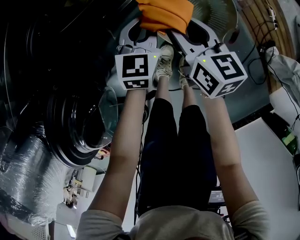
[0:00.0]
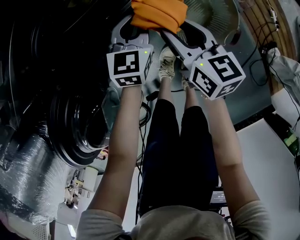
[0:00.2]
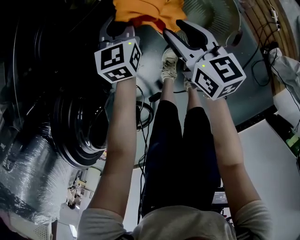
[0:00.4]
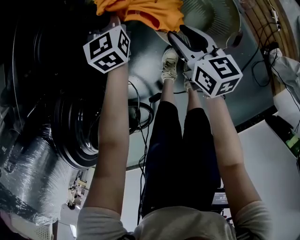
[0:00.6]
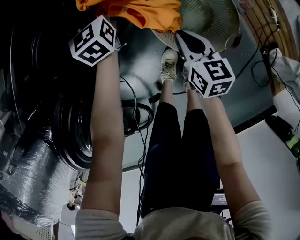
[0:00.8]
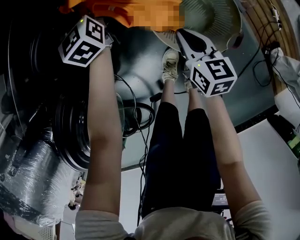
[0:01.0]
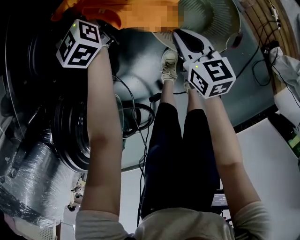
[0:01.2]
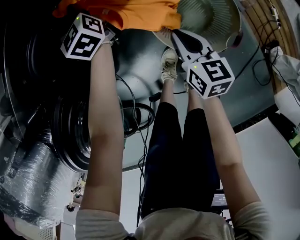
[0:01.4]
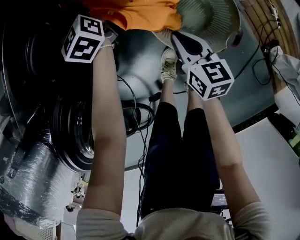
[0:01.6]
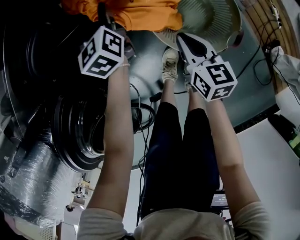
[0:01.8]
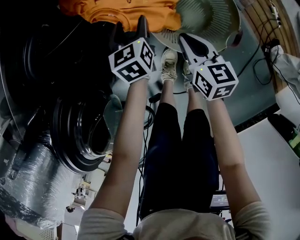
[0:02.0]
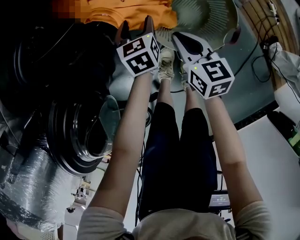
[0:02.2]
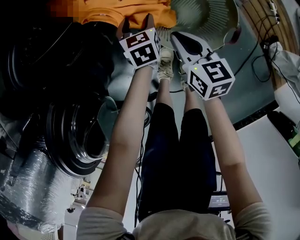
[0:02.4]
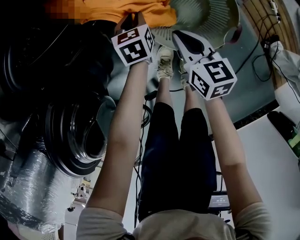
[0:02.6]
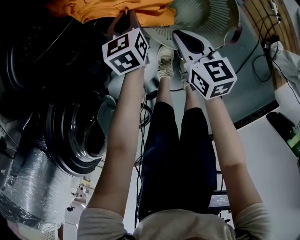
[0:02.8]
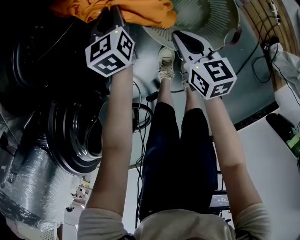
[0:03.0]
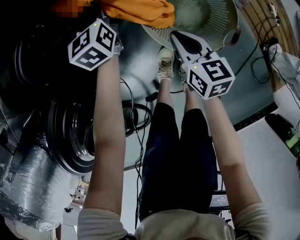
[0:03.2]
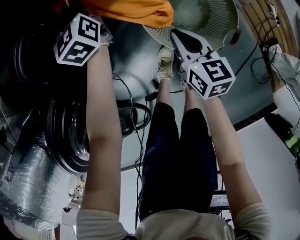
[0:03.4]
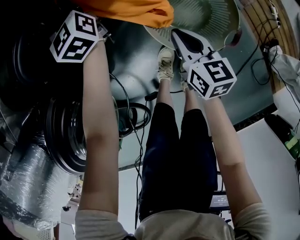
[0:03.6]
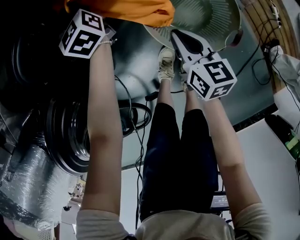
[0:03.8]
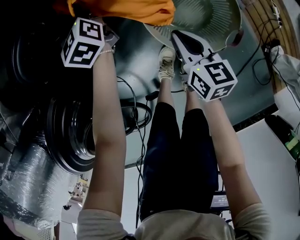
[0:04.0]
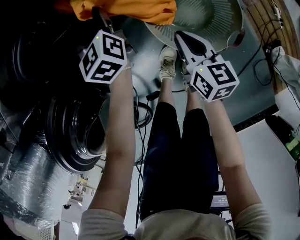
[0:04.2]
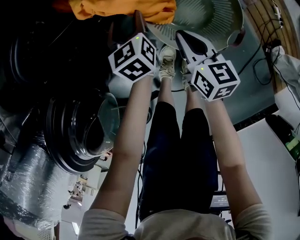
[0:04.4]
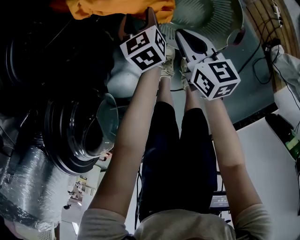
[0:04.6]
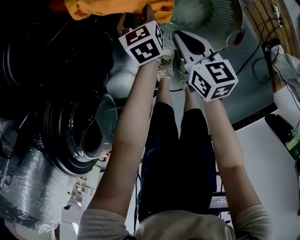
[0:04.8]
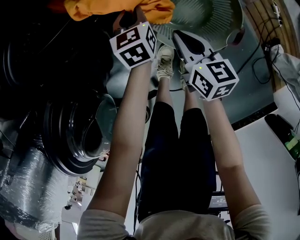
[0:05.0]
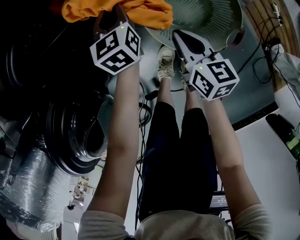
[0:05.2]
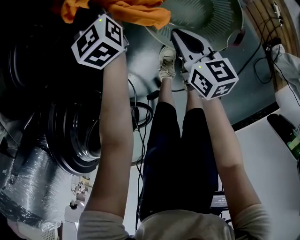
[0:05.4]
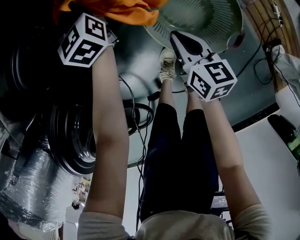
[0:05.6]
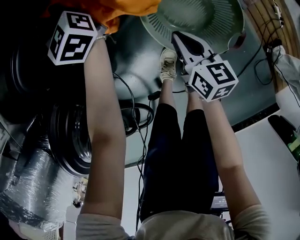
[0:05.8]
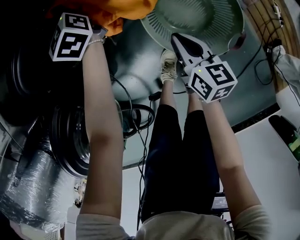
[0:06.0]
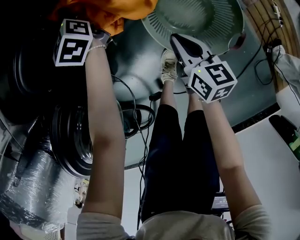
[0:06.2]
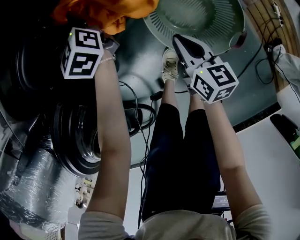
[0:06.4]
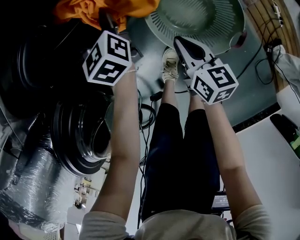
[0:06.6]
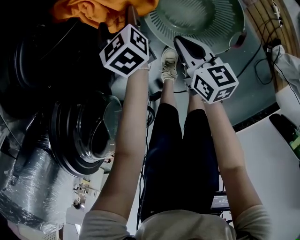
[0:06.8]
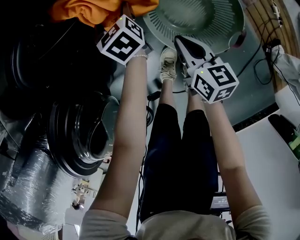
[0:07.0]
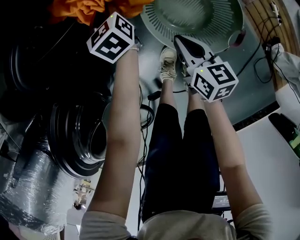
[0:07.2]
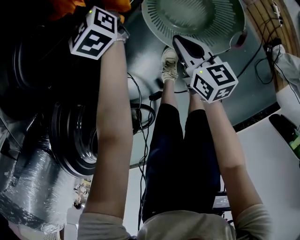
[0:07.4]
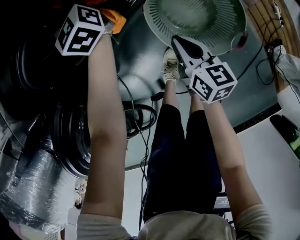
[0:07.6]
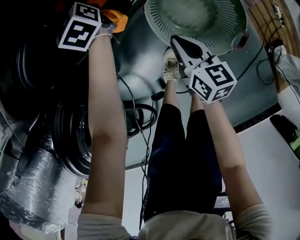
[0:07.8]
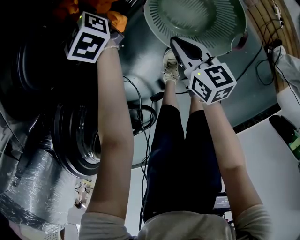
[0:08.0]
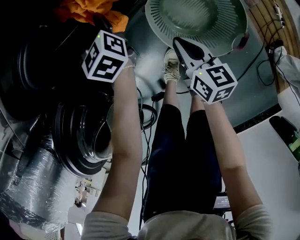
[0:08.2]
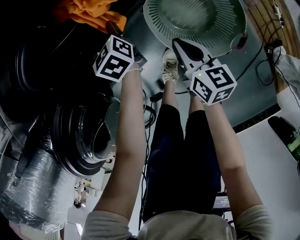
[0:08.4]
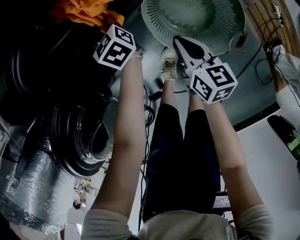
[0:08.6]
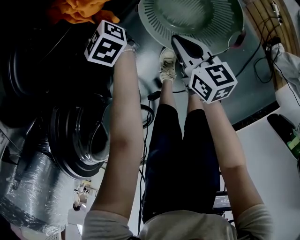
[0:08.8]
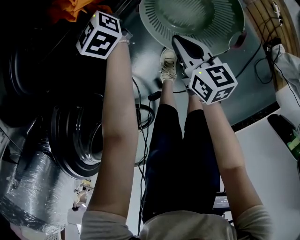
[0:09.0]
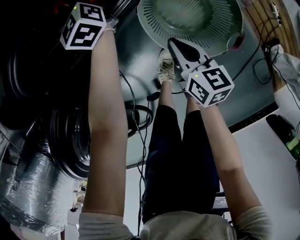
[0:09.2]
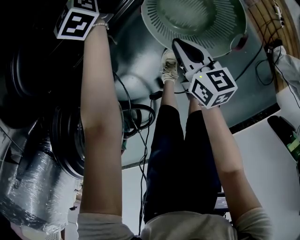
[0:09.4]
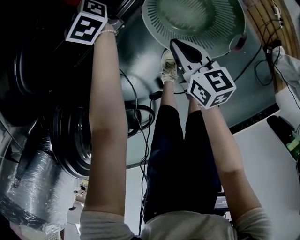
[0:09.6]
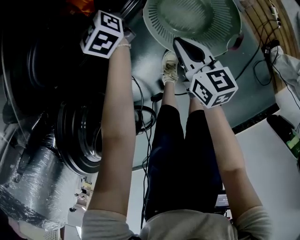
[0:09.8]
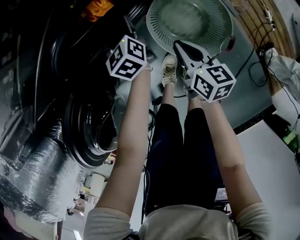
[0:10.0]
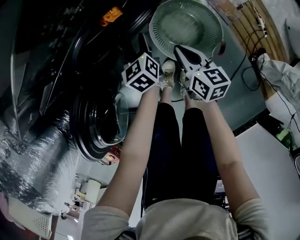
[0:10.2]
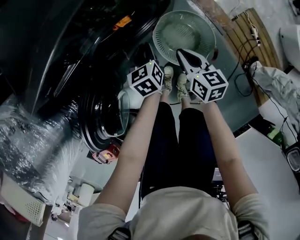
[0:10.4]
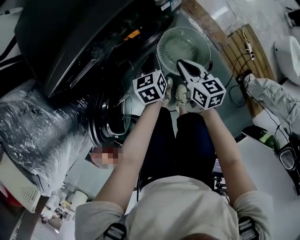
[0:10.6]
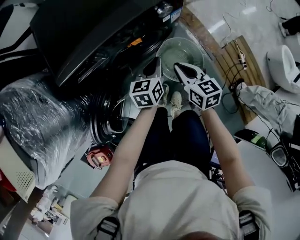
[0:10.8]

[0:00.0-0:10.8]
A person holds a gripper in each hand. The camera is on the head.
0:00.0 to 0:01.6: The left gripper shifts roughly 25 cm forward and to the left, swivels roughly 50 degrees, and opens up. The right gripper is displaced downward by about 5 cm, and closes up.
0:01.6 to 0:03.0: The left gripper is displaced backward, to the right and downward by roughly 15 cm, rotates some 30 degrees, and closes.
0:03.0 to 0:04.6: The left gripper moves backward and downward, about 10 cm, and opens its fingers.
0:04.6 to 0:06.2: The left gripper travels forward, to the left and upward by about 25 cm, changes its angle by approximately 30 degrees, and closes and opens again.
0:06.2 to 0:07.8: The left gripper goes backward and returns, approximately 15 cm each way, and opens, then closes once more.
0:07.8 to 0:09.2: The left gripper moves roughly 15 cm backward and comes back, and closes.
0:09.2 to 0:10.8: The right gripper goes about 35 cm upward, and turns by about 20 degrees. Meanwhile the left gripper heads upward and backward, covering roughly 40 cm, rotates some 40 degrees, and opens, then closes again.

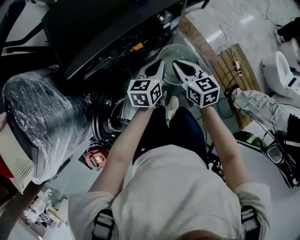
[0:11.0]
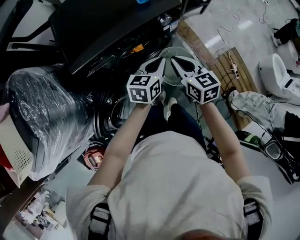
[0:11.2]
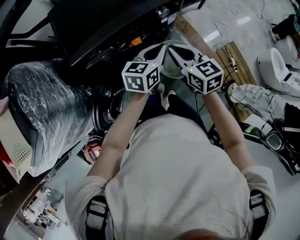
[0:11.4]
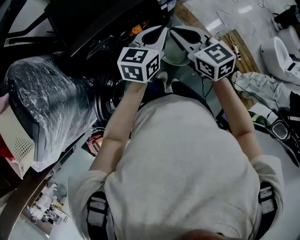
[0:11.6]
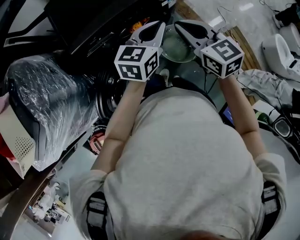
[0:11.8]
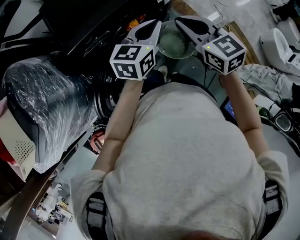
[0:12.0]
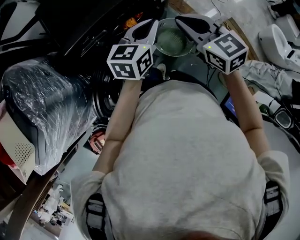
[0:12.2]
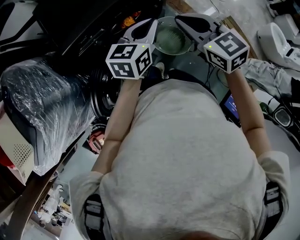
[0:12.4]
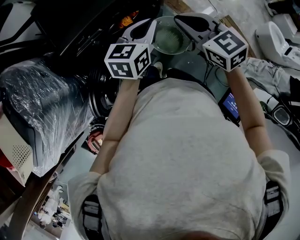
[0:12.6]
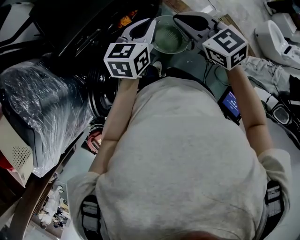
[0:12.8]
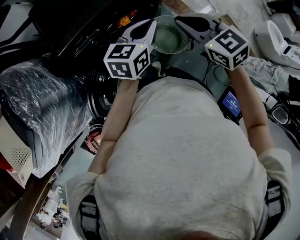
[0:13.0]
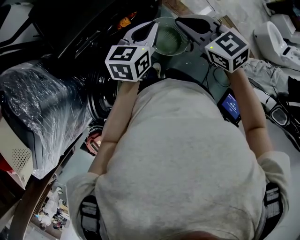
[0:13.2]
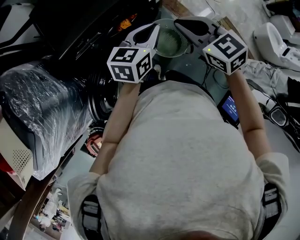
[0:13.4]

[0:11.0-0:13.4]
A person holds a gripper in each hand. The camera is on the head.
0:11.0 to 0:12.2: The two grippers go about 15 cm upward.
0:12.2 to 0:13.4: The grippers stay close to where they were, moving slightly.

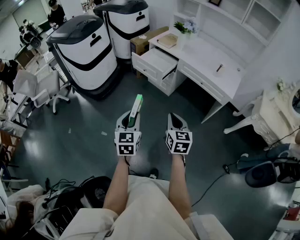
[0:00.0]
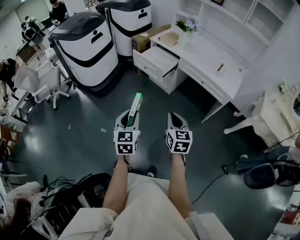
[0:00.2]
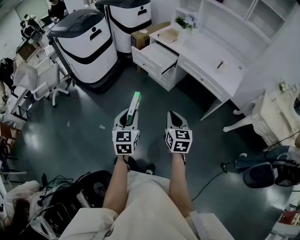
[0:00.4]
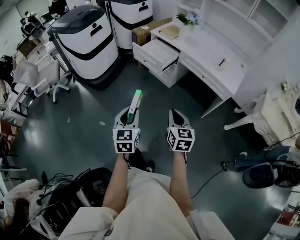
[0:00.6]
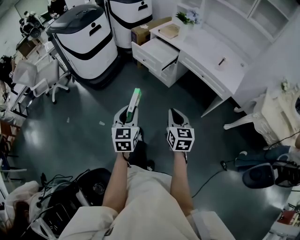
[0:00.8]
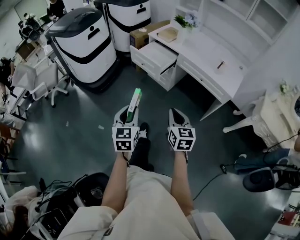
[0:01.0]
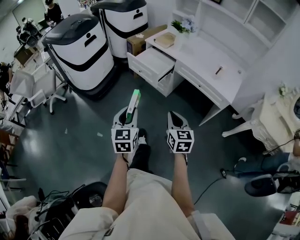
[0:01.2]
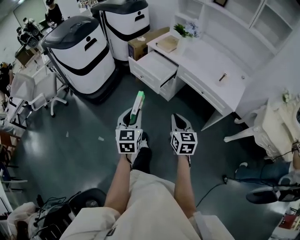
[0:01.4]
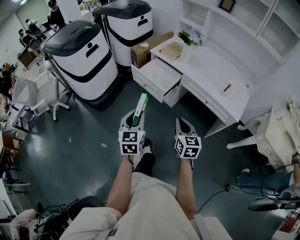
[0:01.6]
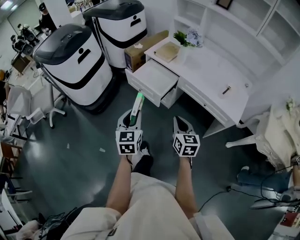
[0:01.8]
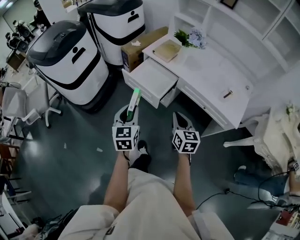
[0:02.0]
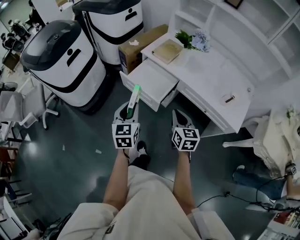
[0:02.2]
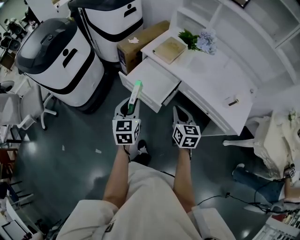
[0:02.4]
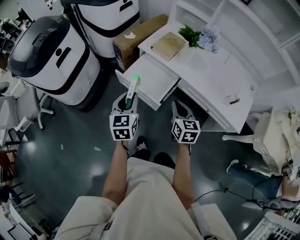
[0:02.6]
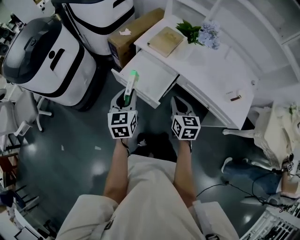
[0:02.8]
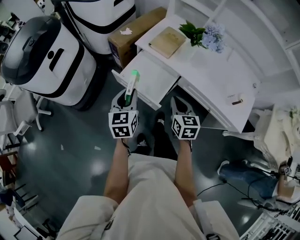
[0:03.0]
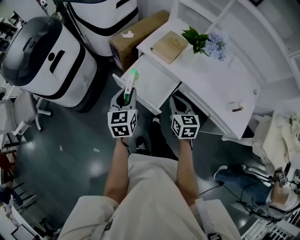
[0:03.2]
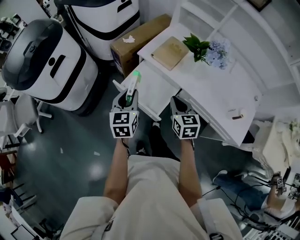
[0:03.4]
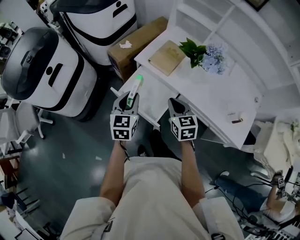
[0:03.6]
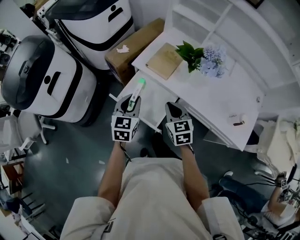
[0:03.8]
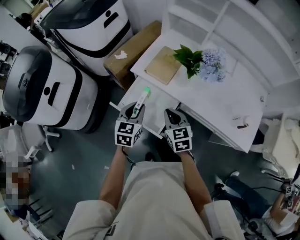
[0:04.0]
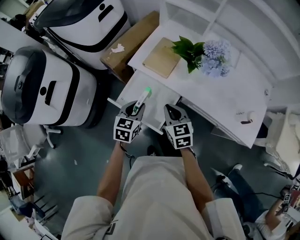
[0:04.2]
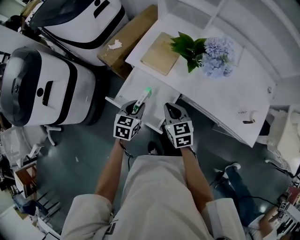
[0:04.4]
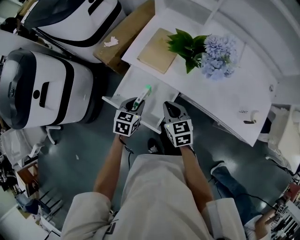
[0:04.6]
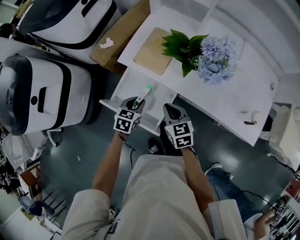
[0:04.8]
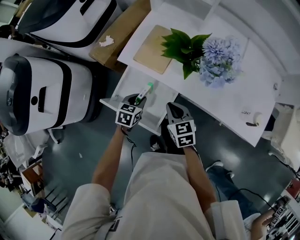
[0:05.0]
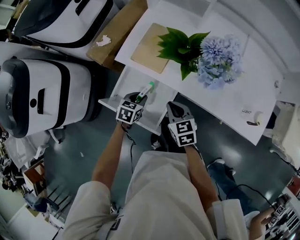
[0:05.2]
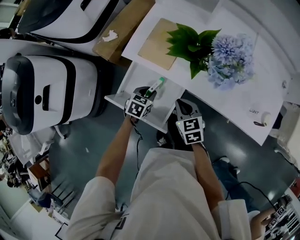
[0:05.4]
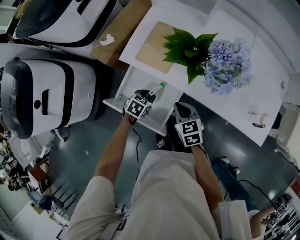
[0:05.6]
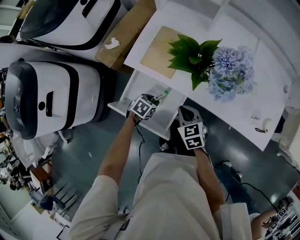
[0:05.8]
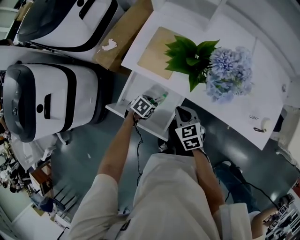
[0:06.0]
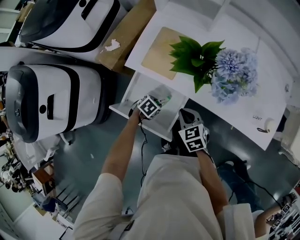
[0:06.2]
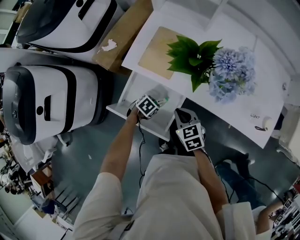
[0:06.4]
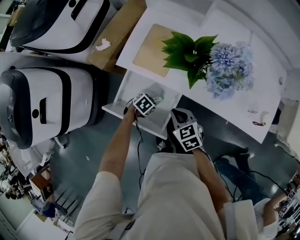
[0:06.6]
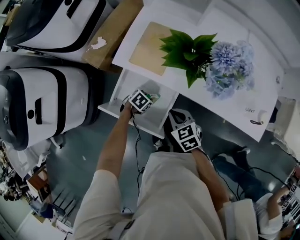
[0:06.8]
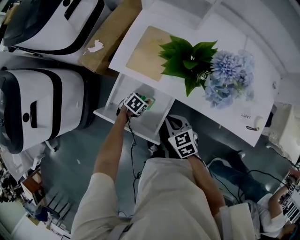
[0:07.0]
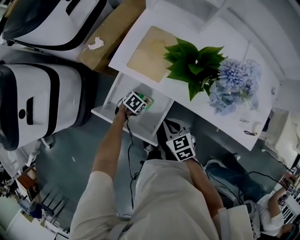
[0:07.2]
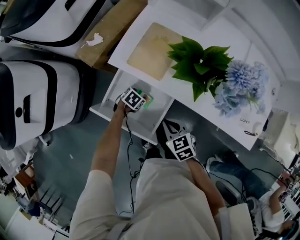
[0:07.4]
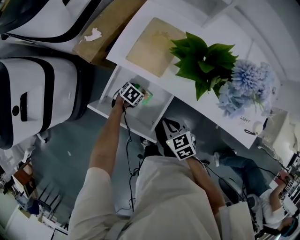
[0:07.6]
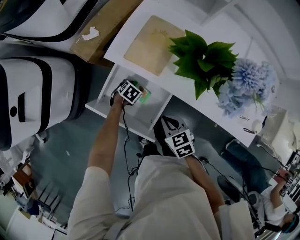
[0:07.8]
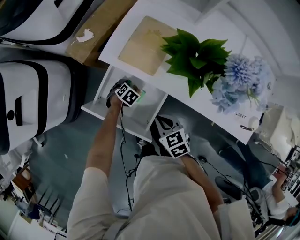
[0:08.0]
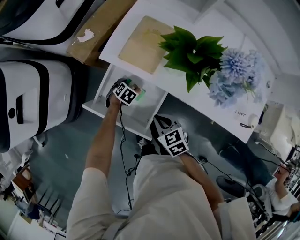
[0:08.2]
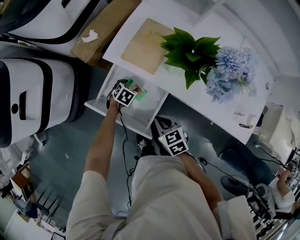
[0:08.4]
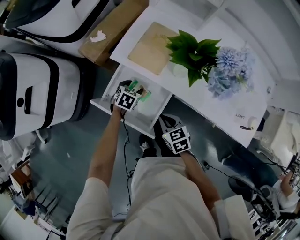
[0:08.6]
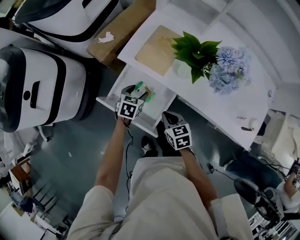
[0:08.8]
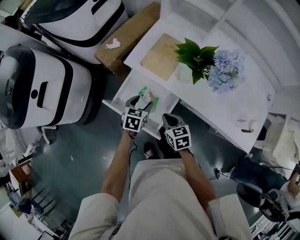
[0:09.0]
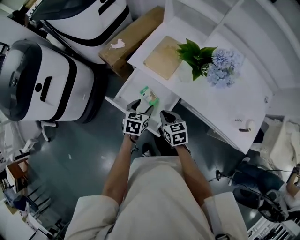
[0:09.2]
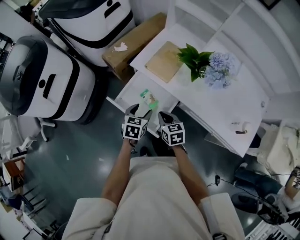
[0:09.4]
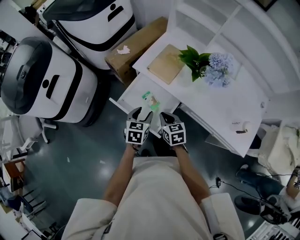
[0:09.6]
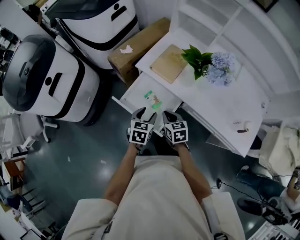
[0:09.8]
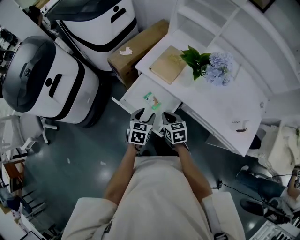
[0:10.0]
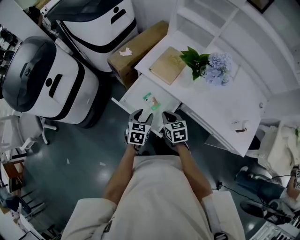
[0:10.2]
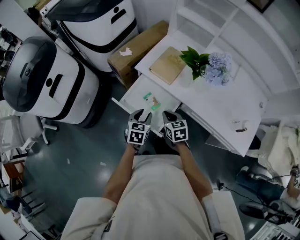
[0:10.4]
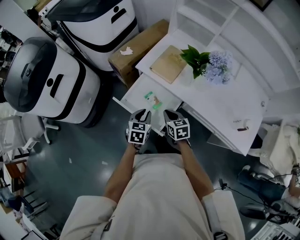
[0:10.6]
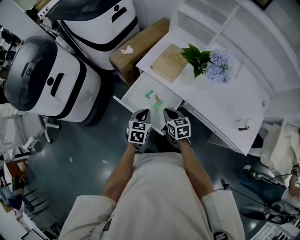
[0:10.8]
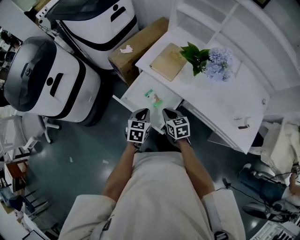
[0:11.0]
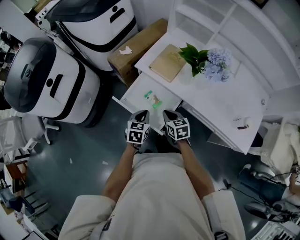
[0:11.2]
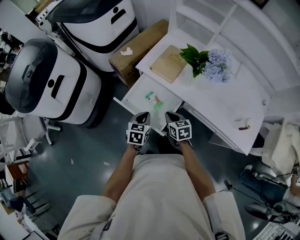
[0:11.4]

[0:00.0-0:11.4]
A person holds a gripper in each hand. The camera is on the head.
0:00.0 to 0:01.4: The left gripper goes some 15 cm forward. The right gripper goes about 15 cm forward and to the right.
0:01.4 to 0:02.8: Both grippers travel together forward, some 40 cm.
0:02.8 to 0:04.2: The left gripper is displaced forward, downward and to the right by approximately 20 cm, and changes its angle by about 30 degrees, while the right gripper travels forward and downward by about 15 cm.
0:04.2 to 0:05.6: The right gripper moves downward, some 10 cm. The left gripper moves downward, approximately 15 cm, and swivels some 30 degrees.
0:05.6 to 0:07.2: The left gripper goes some 10 cm downward.
0:07.2 to 0:08.6: The left gripper shifts some 5 cm upward, swivels roughly 20 degrees, and opens up.
0:08.6 to 0:10.0: The left gripper is displaced upward and backward by some 20 cm, and rotates approximately 30 degrees. Meanwhile the right gripper moves upward, roughly 5 cm.
0:10.0 to 0:11.4: The left gripper closes.
